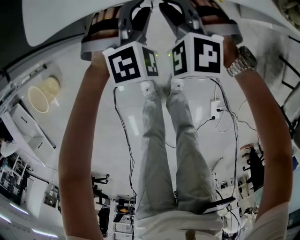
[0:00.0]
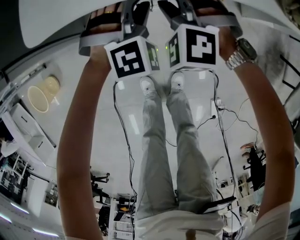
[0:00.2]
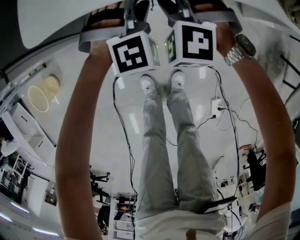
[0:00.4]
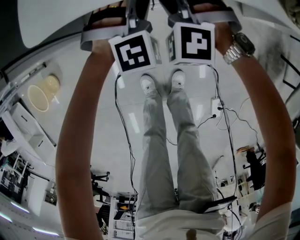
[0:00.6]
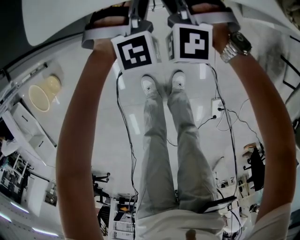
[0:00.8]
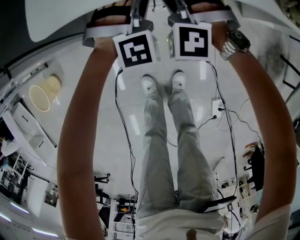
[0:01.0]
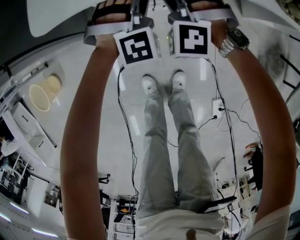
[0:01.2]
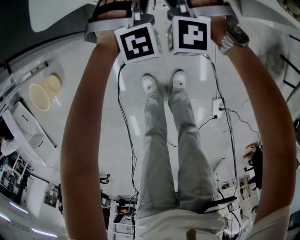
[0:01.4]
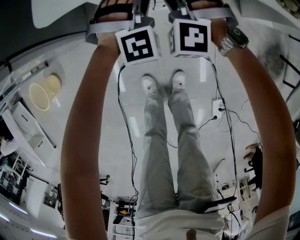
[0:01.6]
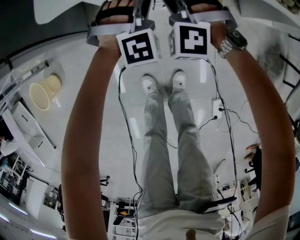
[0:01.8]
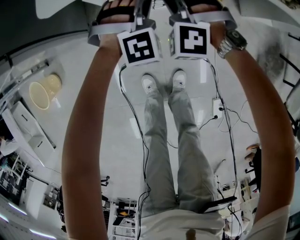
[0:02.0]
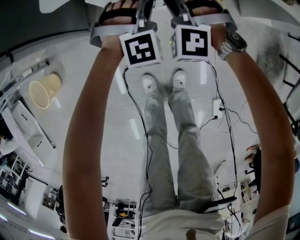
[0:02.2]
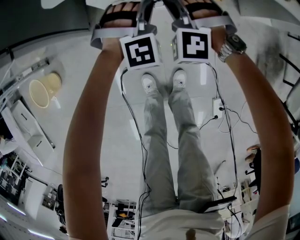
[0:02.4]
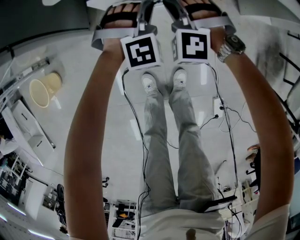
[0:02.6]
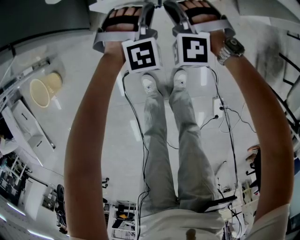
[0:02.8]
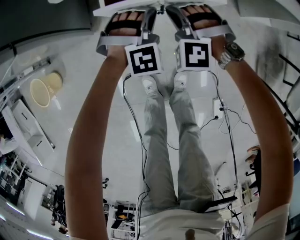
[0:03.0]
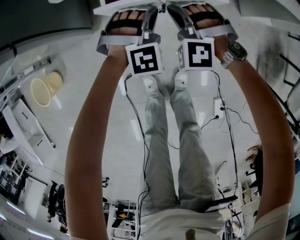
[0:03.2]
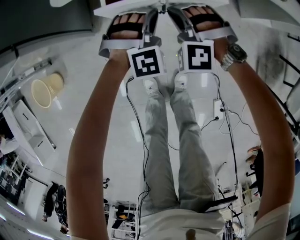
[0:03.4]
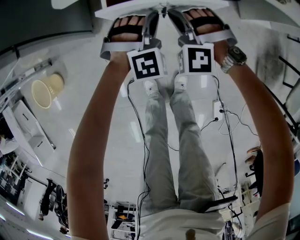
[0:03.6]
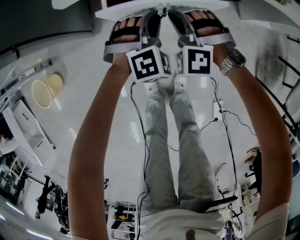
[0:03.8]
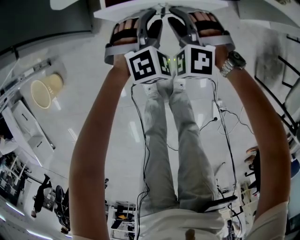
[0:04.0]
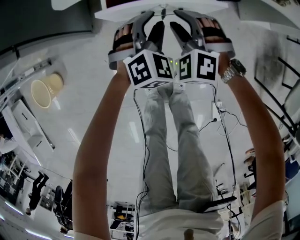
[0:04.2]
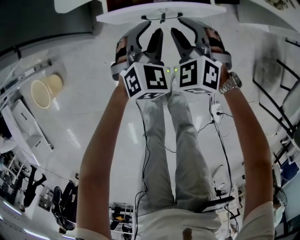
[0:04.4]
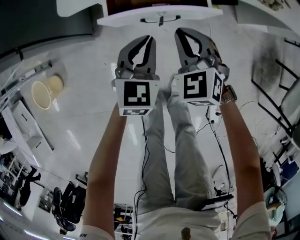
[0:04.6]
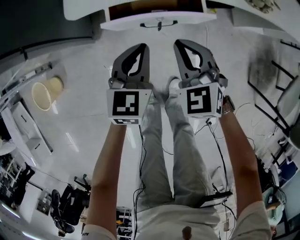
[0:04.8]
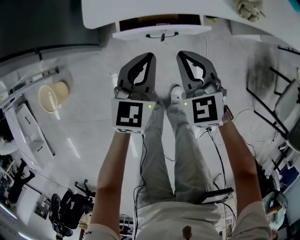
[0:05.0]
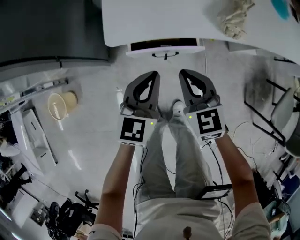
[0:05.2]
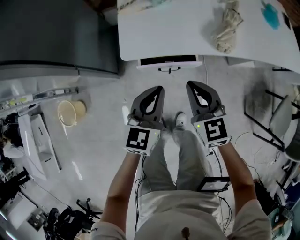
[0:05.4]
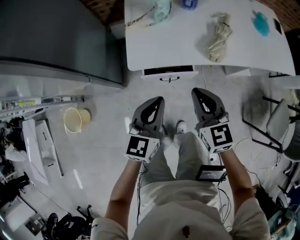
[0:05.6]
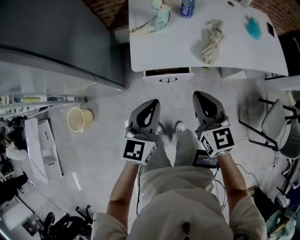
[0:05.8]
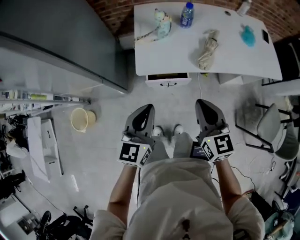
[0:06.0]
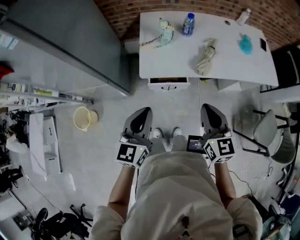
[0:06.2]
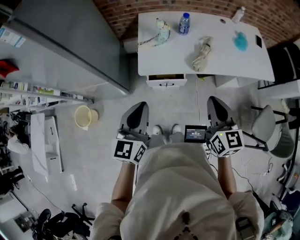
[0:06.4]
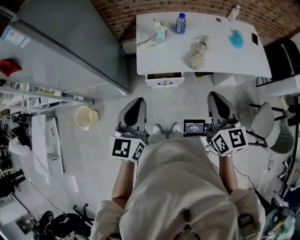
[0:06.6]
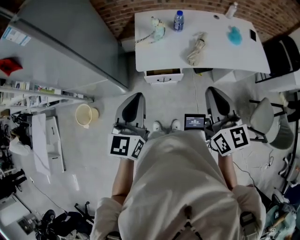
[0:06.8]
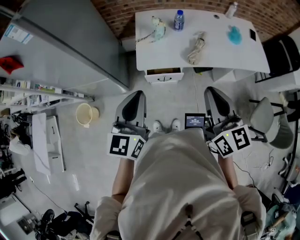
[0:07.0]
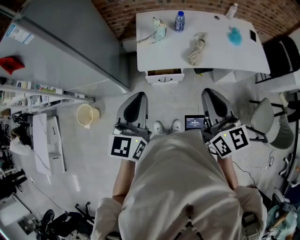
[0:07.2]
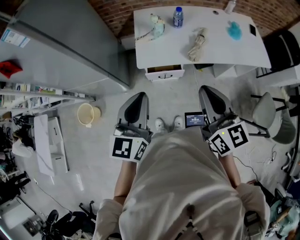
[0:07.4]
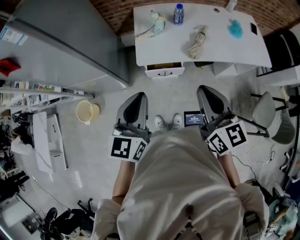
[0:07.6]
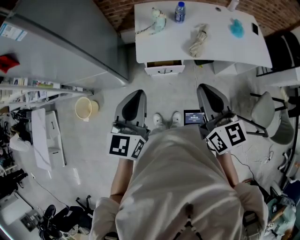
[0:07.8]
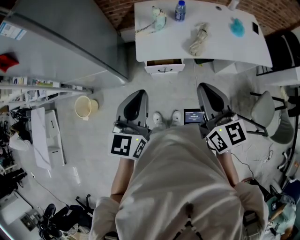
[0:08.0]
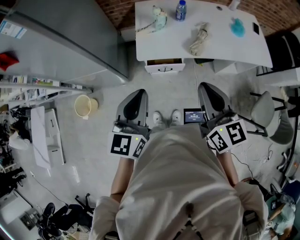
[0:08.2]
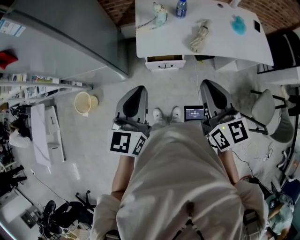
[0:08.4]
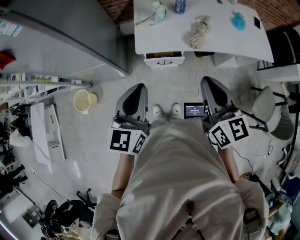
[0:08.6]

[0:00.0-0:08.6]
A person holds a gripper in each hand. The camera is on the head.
0:00.0 to 0:01.4: The left gripper closes up.
0:01.4 to 0:02.8: Both grippers move backward, some 10 cm.
0:02.8 to 0:04.4: The left gripper rotates around the line of its fingers by approximately 40 degrees, counterclockwise from behind, and opens, while the right gripper turns by about 30 degrees, and opens its fingers.
0:04.4 to 0:05.8: Both grippers move upward, about 40 cm. The left gripper turns by some 40 degrees, and closes, while the right gripper twists some 40 degrees clockwise, seen from behind, and closes its fingers.
0:05.8 to 0:07.2: The right gripper heads upward and backward, covering about 25 cm. The left gripper moves upward, some 25 cm.
0:07.2 to 0:08.6: The grippers stay close to where they were, moving slightly.

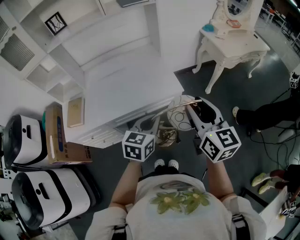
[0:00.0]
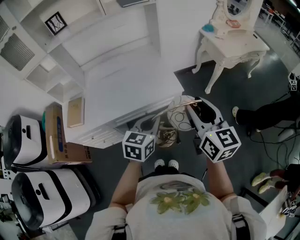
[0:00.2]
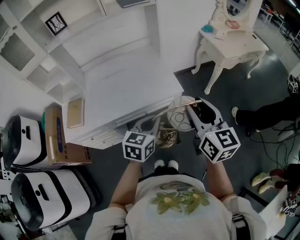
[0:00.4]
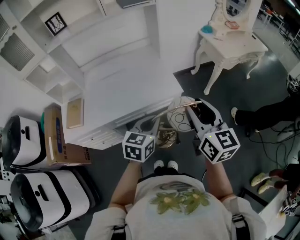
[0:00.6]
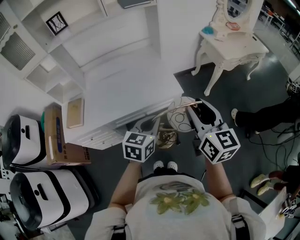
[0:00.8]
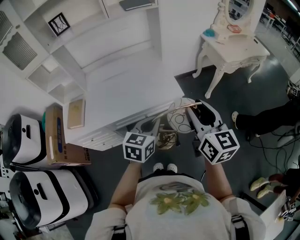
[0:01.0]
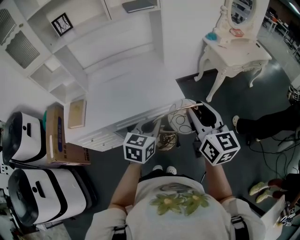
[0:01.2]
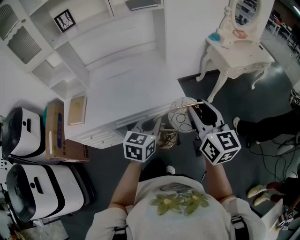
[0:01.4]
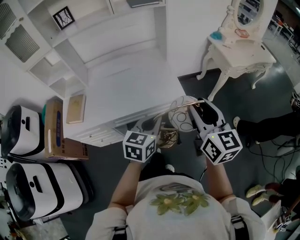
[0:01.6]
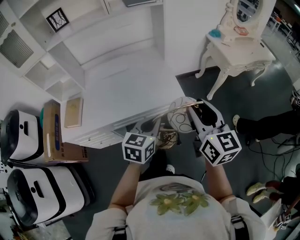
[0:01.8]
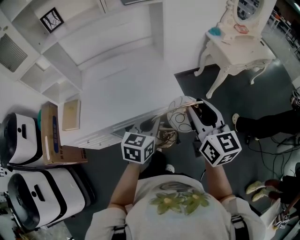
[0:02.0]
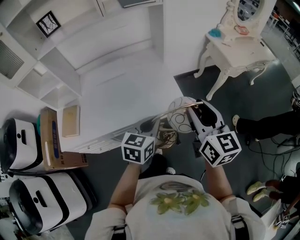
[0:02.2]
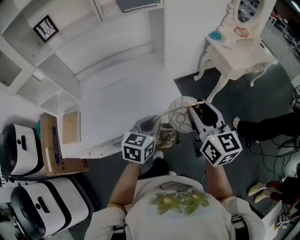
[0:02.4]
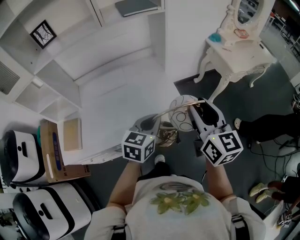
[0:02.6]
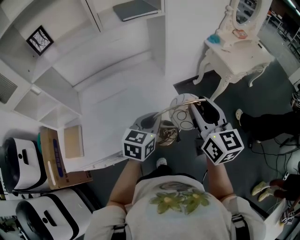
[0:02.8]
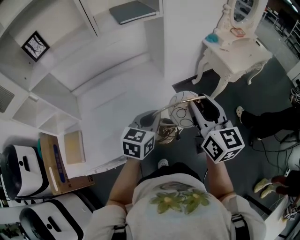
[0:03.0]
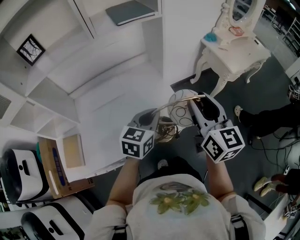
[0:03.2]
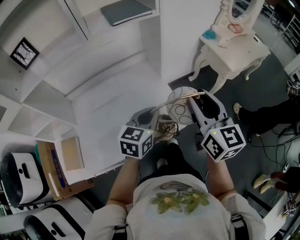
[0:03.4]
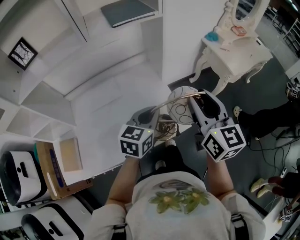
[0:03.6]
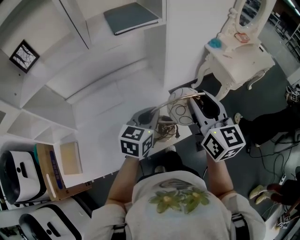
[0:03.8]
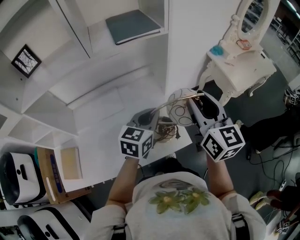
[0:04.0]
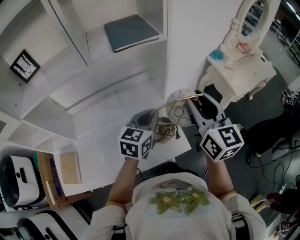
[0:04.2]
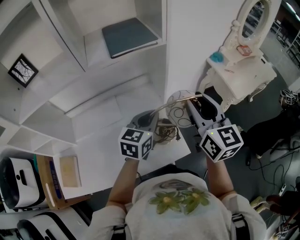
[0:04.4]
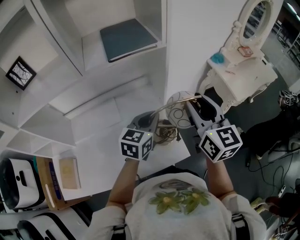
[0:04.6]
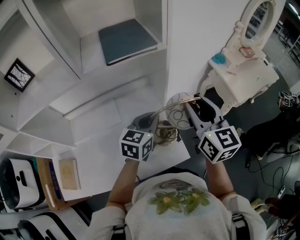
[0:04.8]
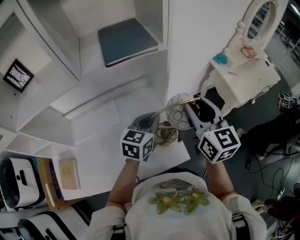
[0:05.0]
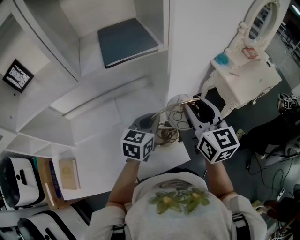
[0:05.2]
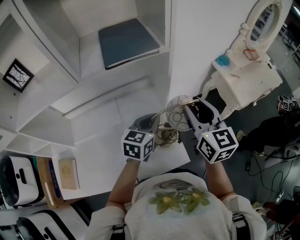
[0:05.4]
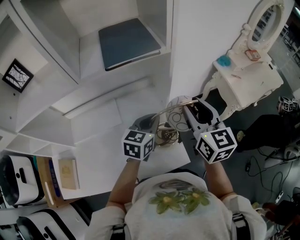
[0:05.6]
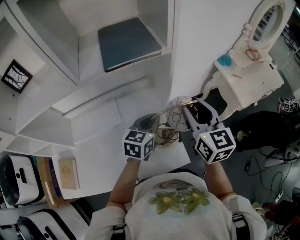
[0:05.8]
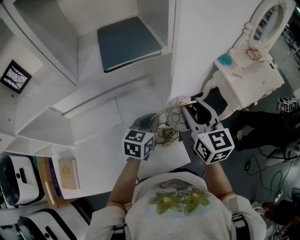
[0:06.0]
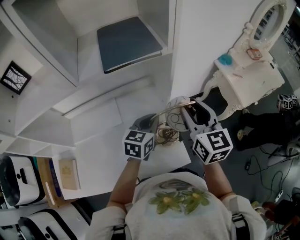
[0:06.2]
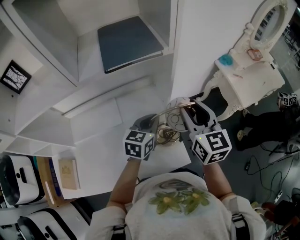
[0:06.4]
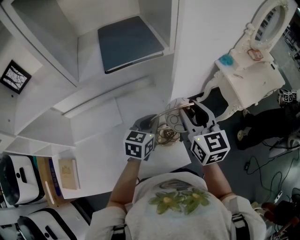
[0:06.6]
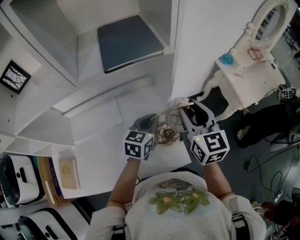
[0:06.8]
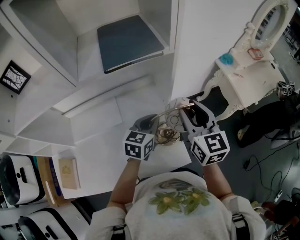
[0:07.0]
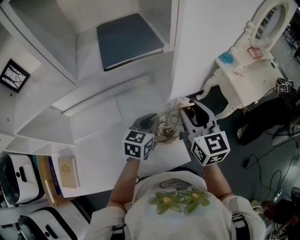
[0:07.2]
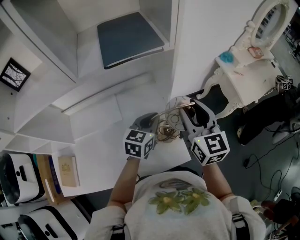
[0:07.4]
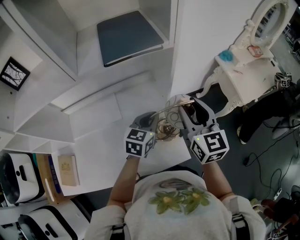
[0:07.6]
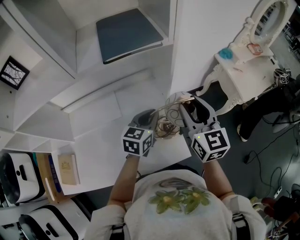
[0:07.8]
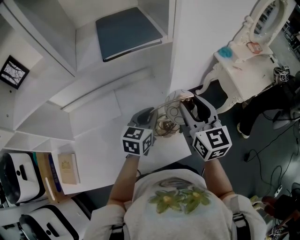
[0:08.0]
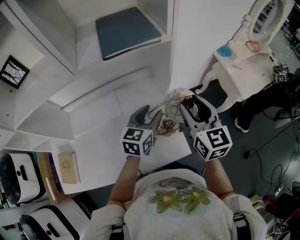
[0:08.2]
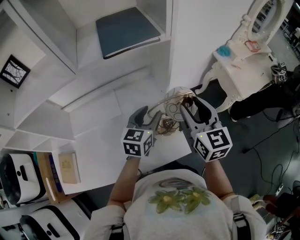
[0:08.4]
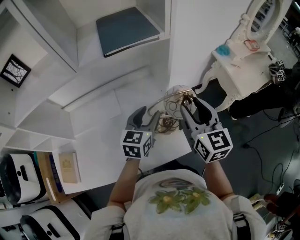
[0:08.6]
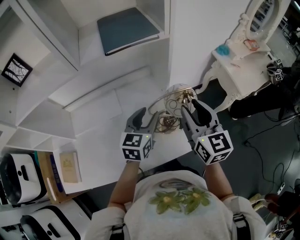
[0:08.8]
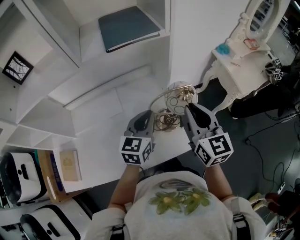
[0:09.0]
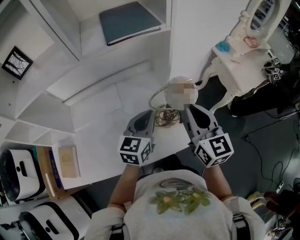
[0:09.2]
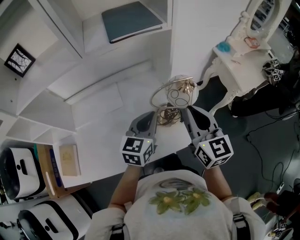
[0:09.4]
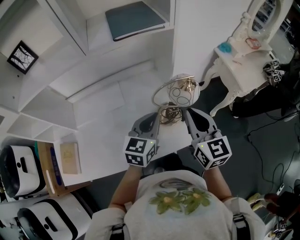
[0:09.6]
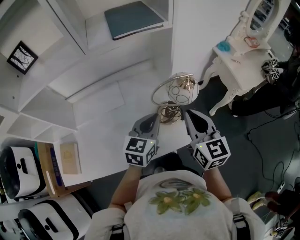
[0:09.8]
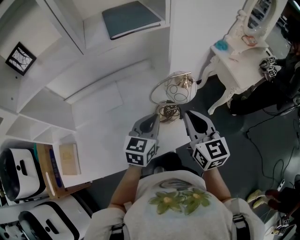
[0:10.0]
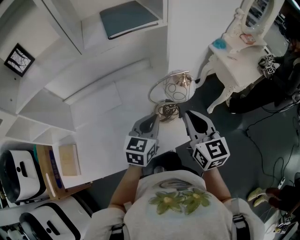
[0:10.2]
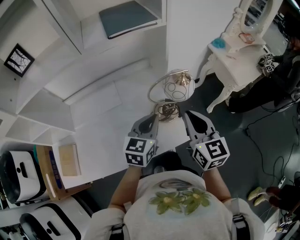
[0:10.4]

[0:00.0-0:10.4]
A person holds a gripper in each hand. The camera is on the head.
0:00.0 to 0:01.4: There are only small adjustments of the grippers.
0:01.4 to 0:03.0: Both grippers move forward, roughly 20 cm.
0:03.0 to 0:04.4: Both grippers move forward, some 20 cm.
0:04.4 to 0:06.0: Both grippers move forward and downward, approximately 10 cm.
0:06.0 to 0:07.4: There are only small adjustments of the grippers.
0:07.4 to 0:09.0: Both grippers move backward, roughly 5 cm. The right gripper closes its fingers, while the left gripper opens, then closes once more.
0:09.0 to 0:10.4: The two grippers go some 5 cm backward.

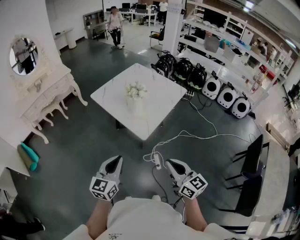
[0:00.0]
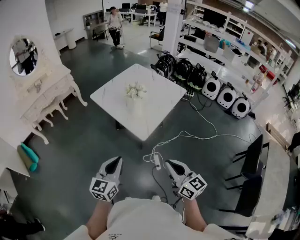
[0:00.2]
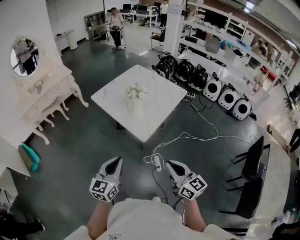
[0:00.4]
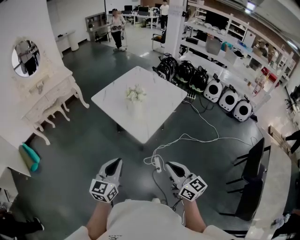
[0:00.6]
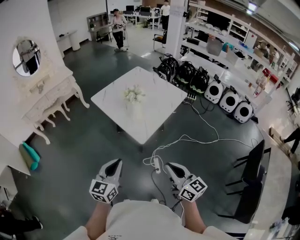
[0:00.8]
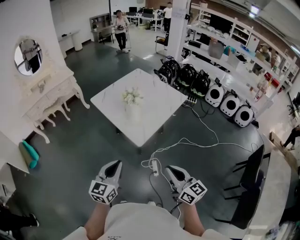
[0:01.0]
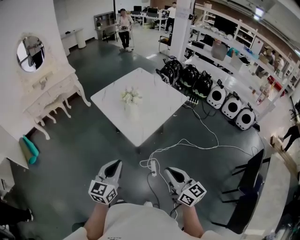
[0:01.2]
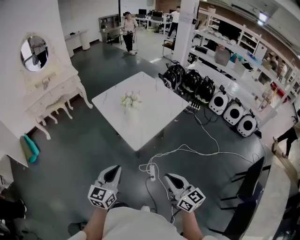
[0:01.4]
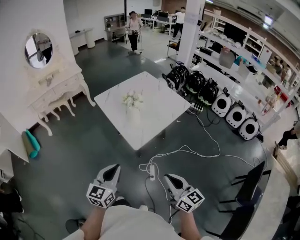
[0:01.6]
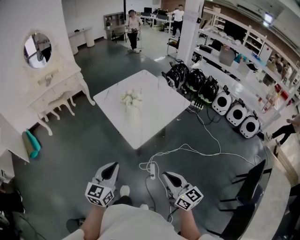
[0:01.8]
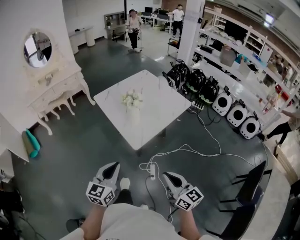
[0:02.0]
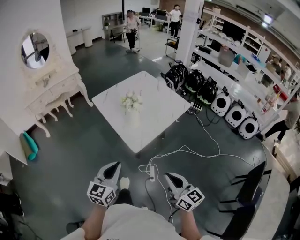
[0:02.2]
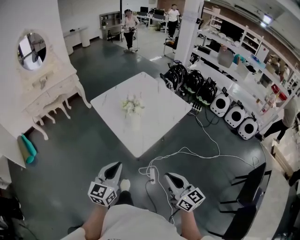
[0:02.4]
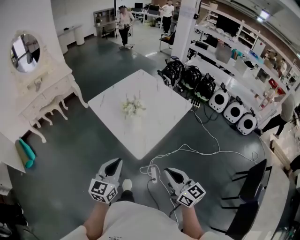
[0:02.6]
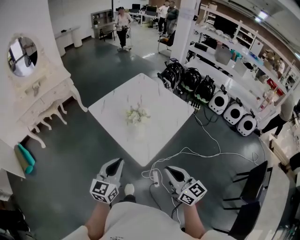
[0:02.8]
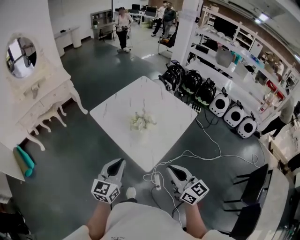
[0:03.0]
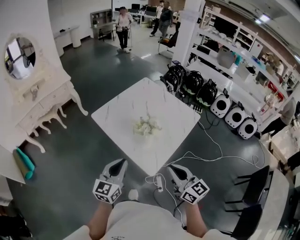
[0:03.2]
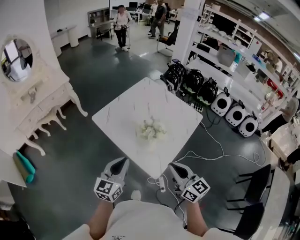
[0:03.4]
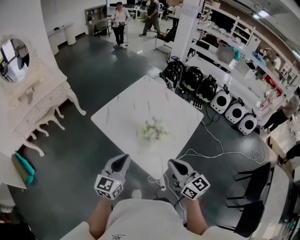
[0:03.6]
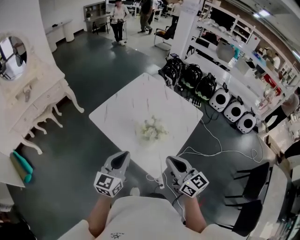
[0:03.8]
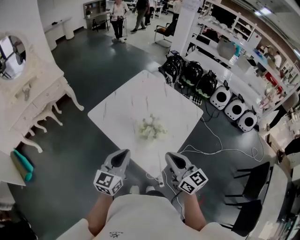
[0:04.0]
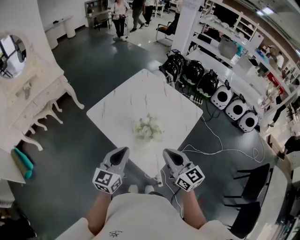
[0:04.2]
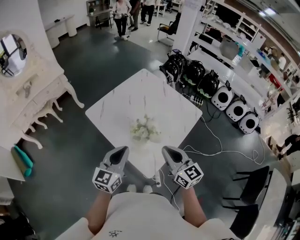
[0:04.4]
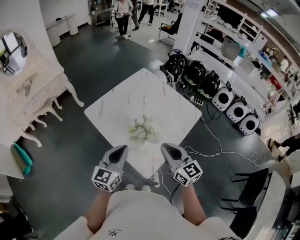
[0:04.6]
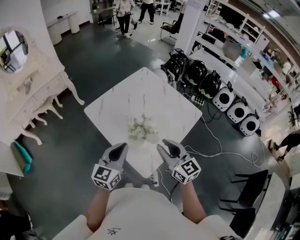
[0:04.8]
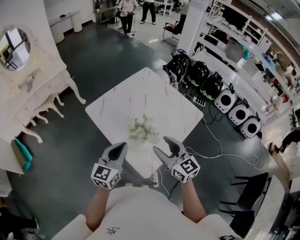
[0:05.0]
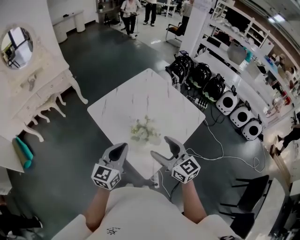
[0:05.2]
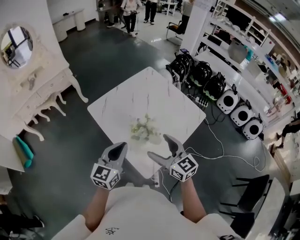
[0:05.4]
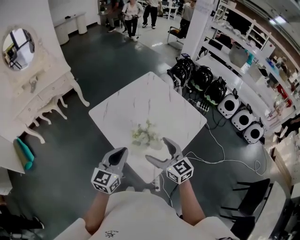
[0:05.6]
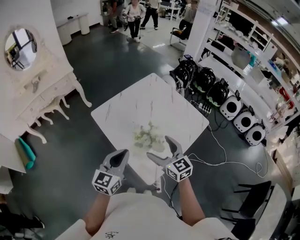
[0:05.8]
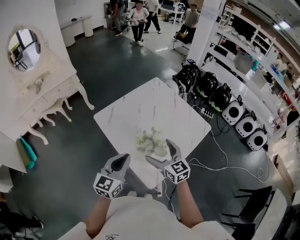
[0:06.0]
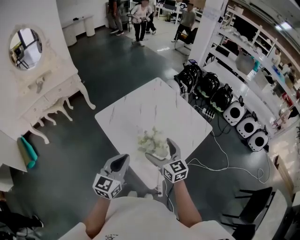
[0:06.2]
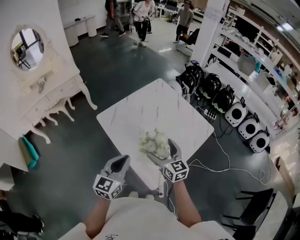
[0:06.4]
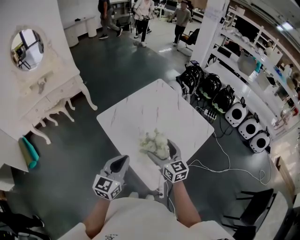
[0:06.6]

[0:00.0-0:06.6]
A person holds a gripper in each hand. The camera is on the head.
0:00.0 to 0:01.6: The two grippers go approximately 10 cm to the right.
0:01.6 to 0:03.2: The left gripper travels forward by roughly 25 cm. Meanwhile the right gripper heads forward and to the left, covering approximately 30 cm.
0:03.2 to 0:05.0: Both grippers travel together forward, some 15 cm. The right gripper opens.
0:05.0 to 0:06.6: The right gripper travels forward and downward by about 10 cm, and opens its fingers.
